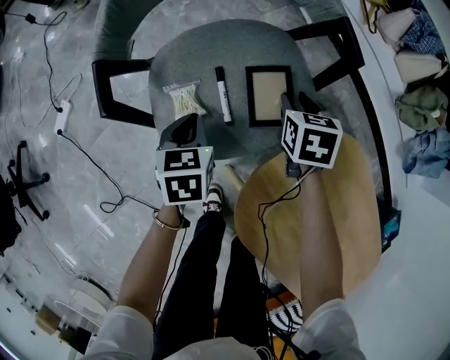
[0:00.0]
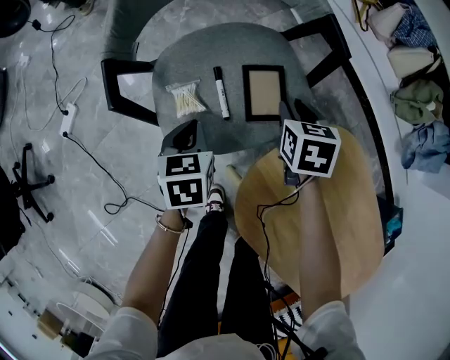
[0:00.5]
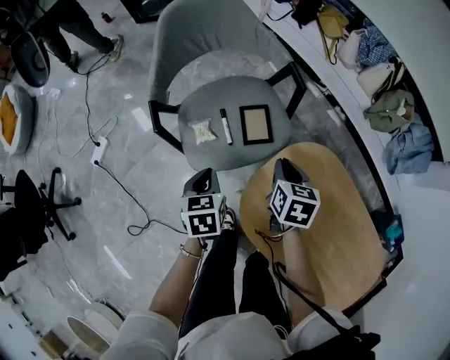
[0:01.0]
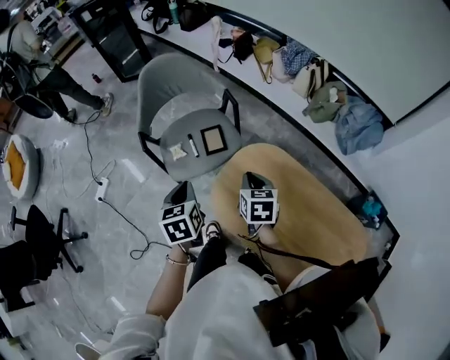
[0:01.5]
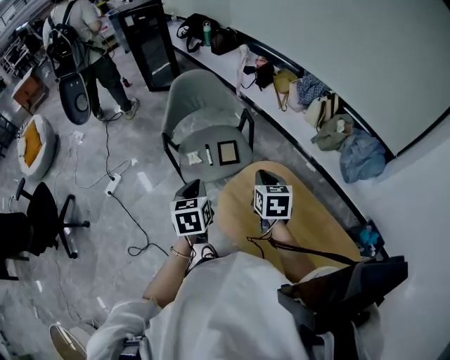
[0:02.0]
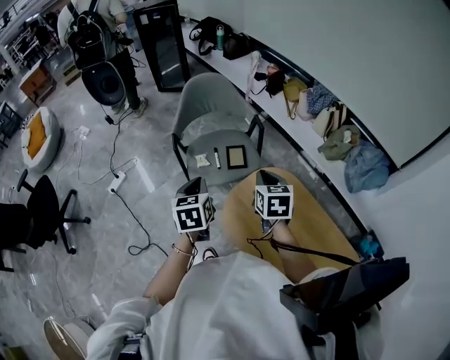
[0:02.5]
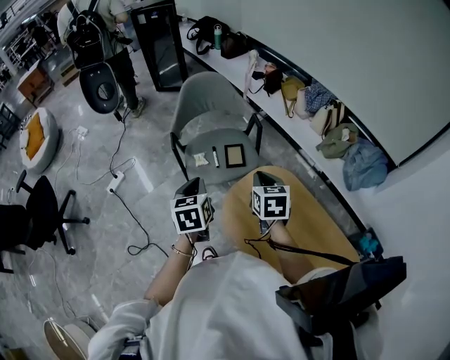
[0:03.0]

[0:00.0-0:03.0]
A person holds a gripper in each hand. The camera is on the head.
0.0 to 1.5 s: Both grippers move upward and backward, about 40 cm. The right gripper closes.
1.5 to 3.0 s: The right gripper shifts some 10 cm upward, while the left gripper heads upward, covering about 5 cm.

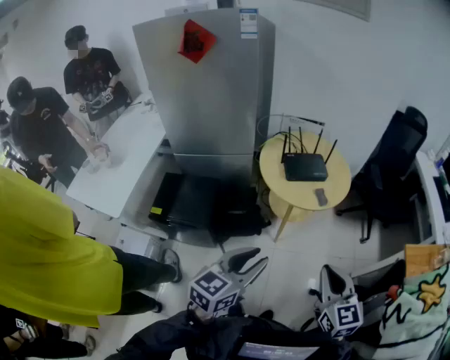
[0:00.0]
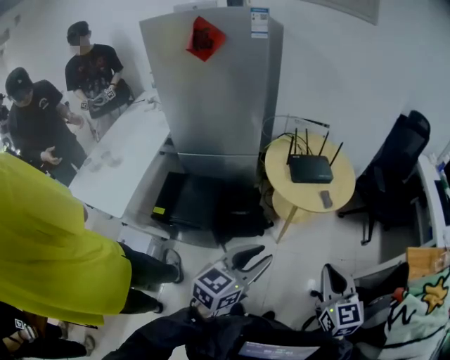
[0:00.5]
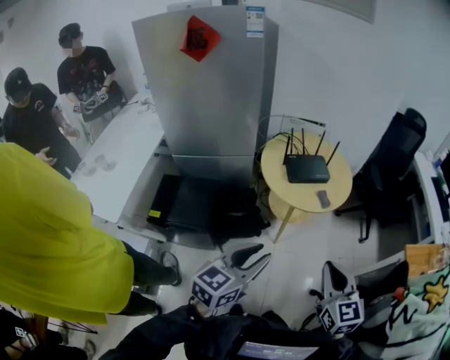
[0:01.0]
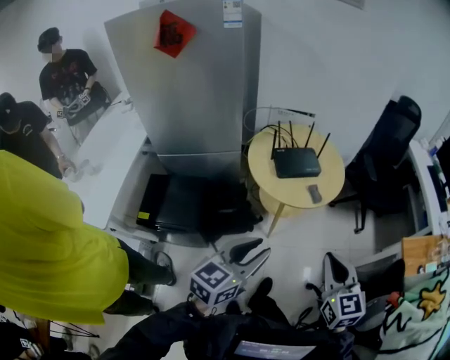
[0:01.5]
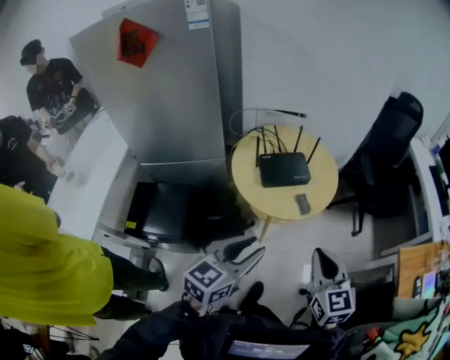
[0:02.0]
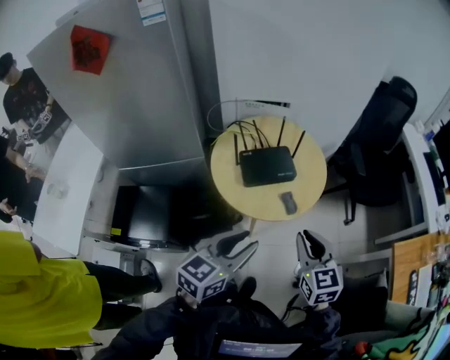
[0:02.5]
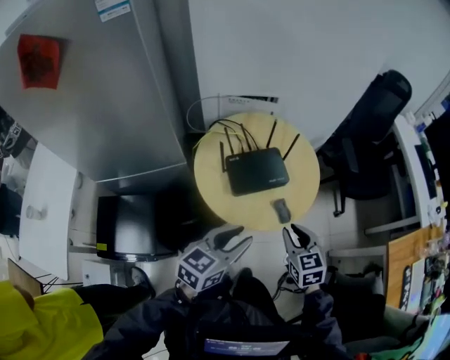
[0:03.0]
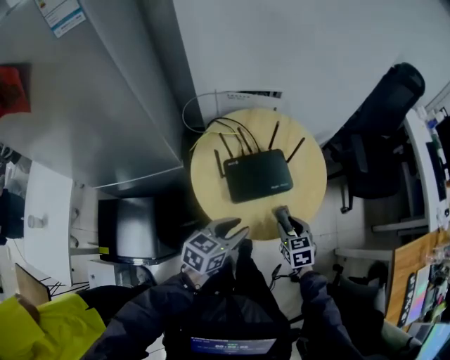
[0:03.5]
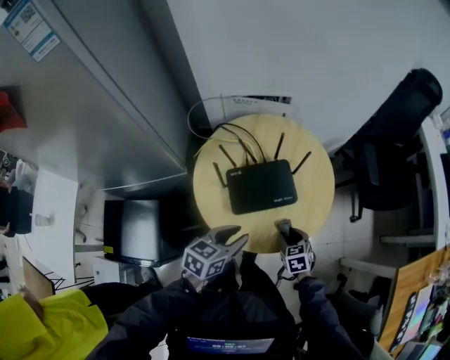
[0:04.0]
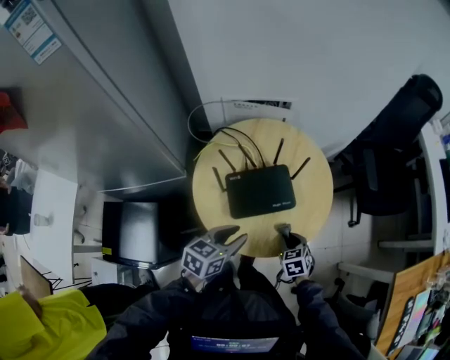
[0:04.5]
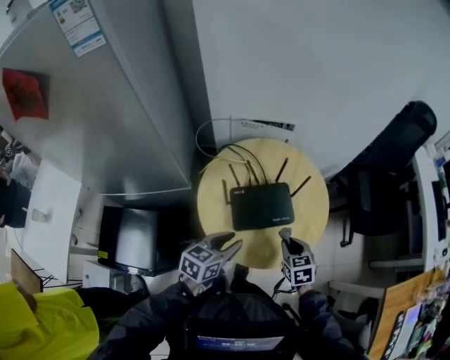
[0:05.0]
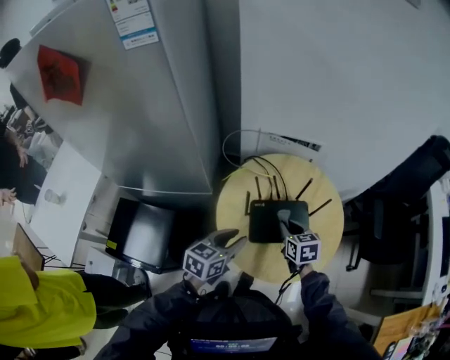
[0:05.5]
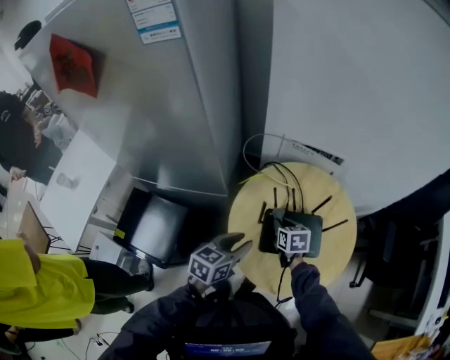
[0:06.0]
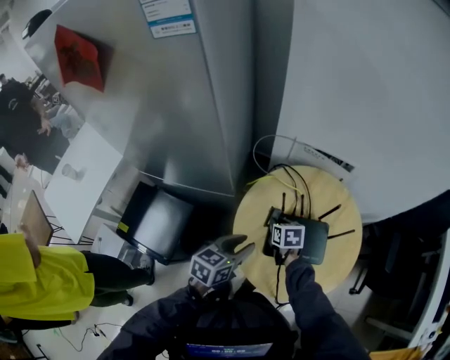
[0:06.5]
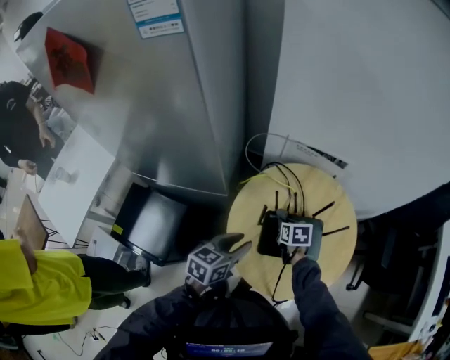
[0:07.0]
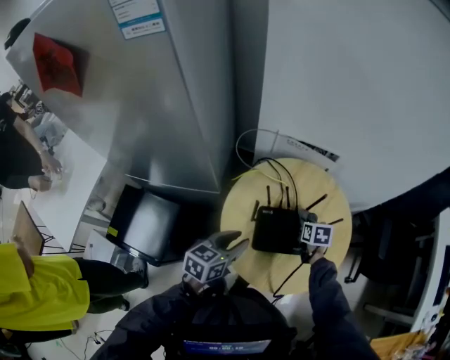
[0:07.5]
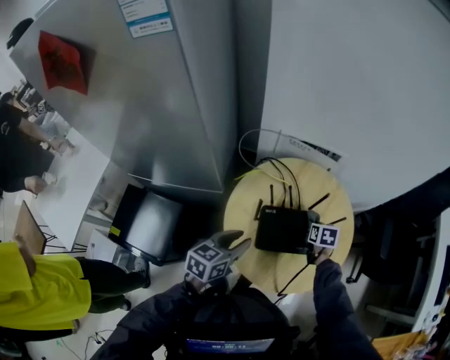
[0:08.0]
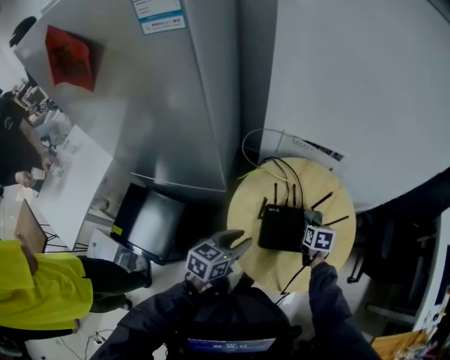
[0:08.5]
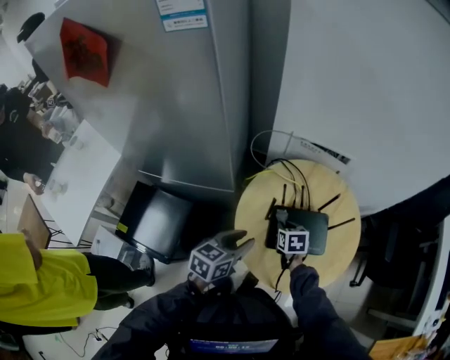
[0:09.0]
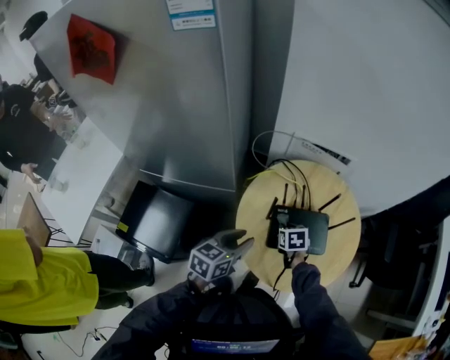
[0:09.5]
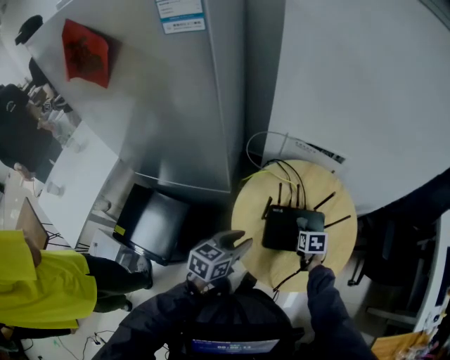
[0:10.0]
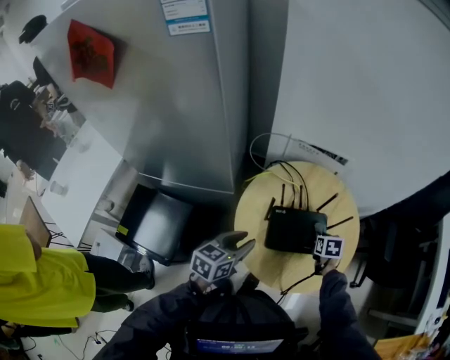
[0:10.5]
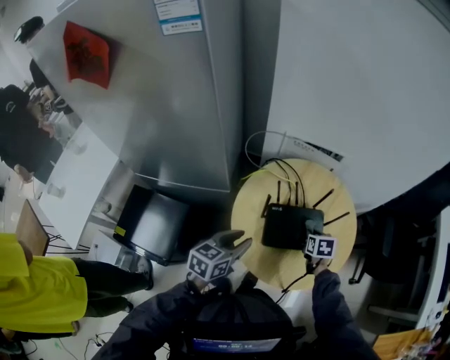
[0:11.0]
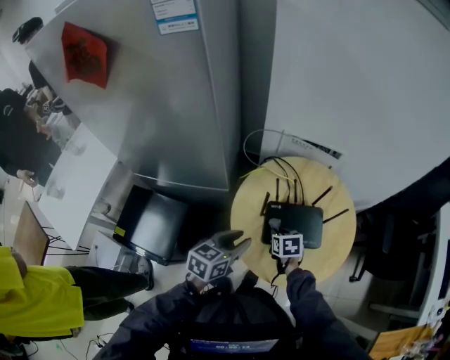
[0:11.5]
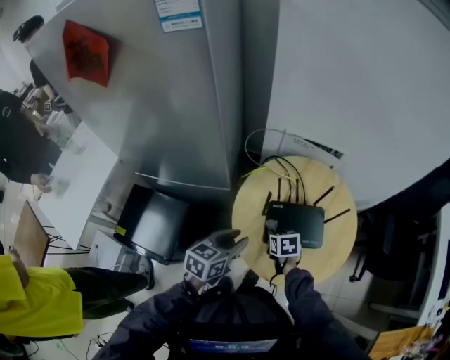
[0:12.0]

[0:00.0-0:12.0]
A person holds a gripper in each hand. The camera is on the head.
0.0 to 2.0 s: Both grippers travel together forward, some 15 cm.
2.0 to 4.0 s: The right gripper moves downward and forward, some 50 cm, tips its fingers downward by approximately 40 degrees, and opens up. The left gripper heads forward and downward, covering approximately 35 cm, and swivels approximately 20 degrees.
4.0 to 6.0 s: The right gripper changes place by approximately 30 cm, and closes its fingers; the left gripper shifts by about 15 cm, and rotates roughly 20 degrees.
6.0 to 8.0 s: The right gripper heads to the right, covering about 15 cm.
8.0 to 10.0 s: The right gripper is displaced backward by roughly 5 cm, and goes to the left and returns, some 15 cm each way.
10.0 to 12.0 s: The right gripper travels to the left and backward by approximately 15 cm.

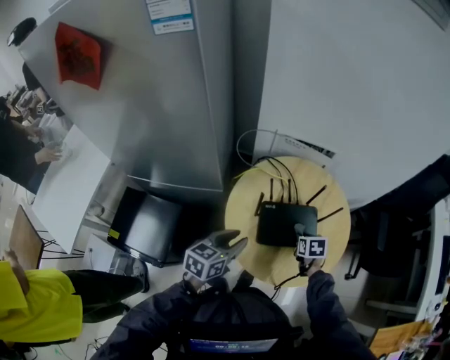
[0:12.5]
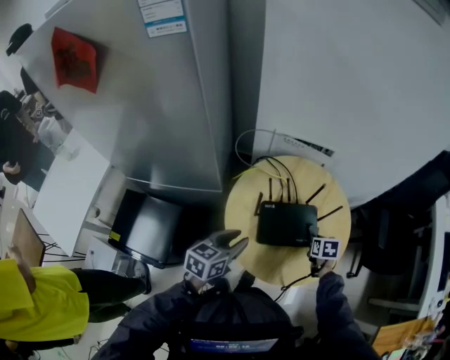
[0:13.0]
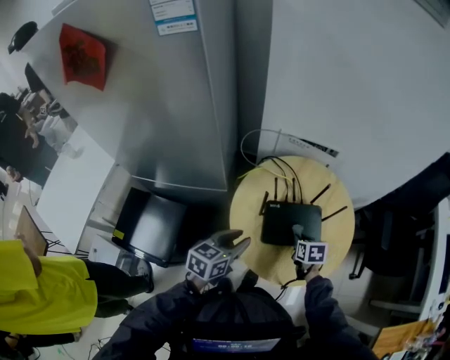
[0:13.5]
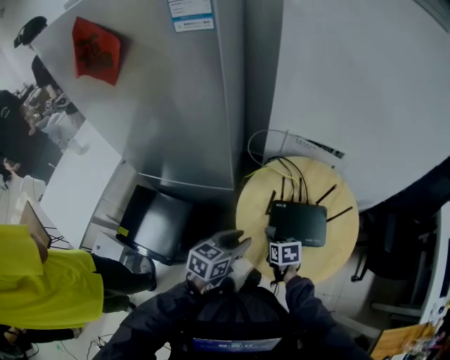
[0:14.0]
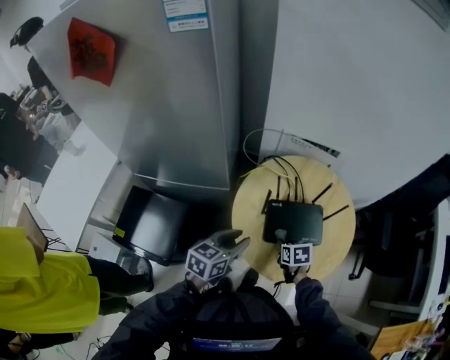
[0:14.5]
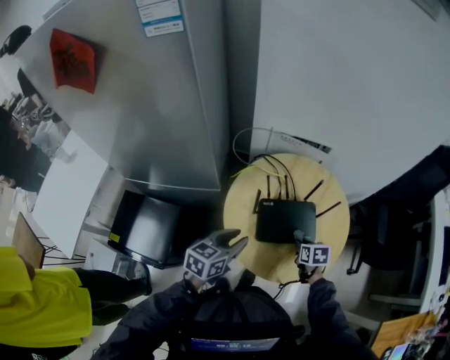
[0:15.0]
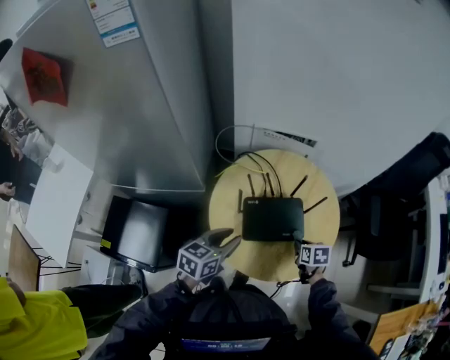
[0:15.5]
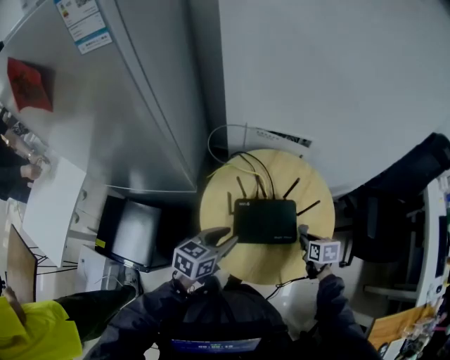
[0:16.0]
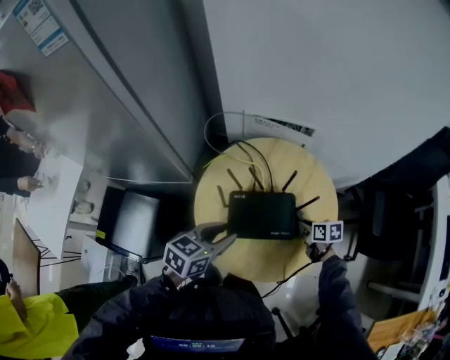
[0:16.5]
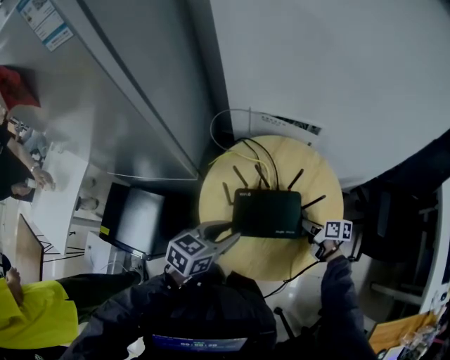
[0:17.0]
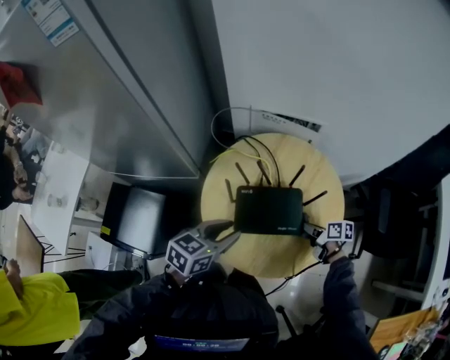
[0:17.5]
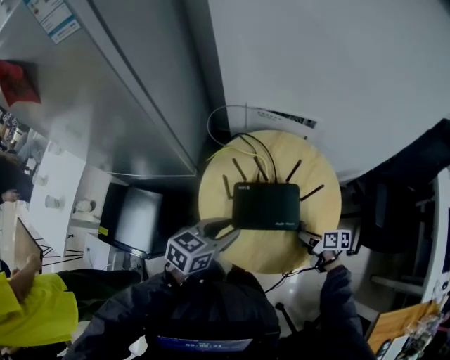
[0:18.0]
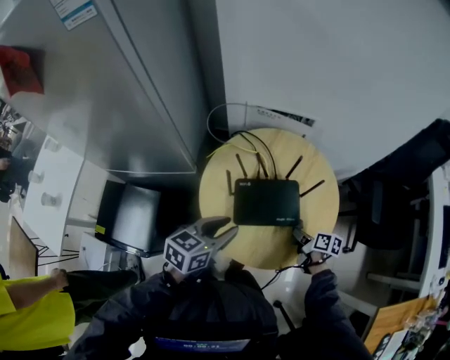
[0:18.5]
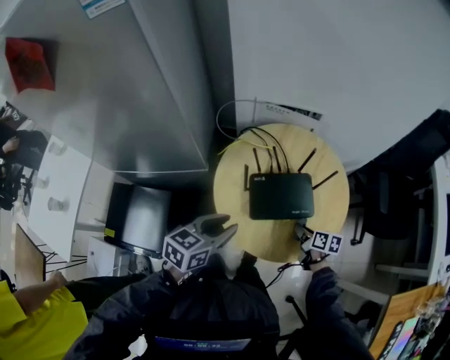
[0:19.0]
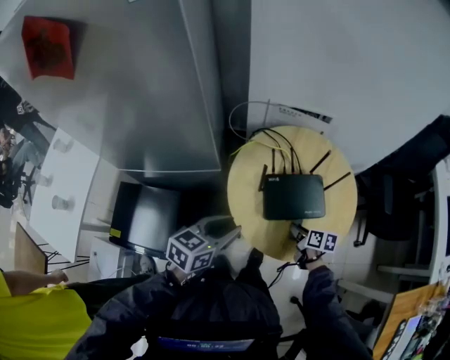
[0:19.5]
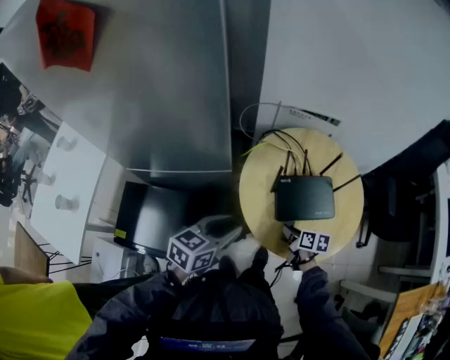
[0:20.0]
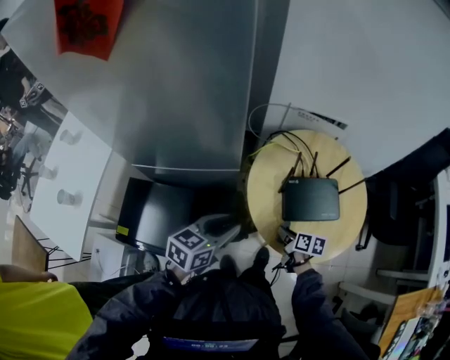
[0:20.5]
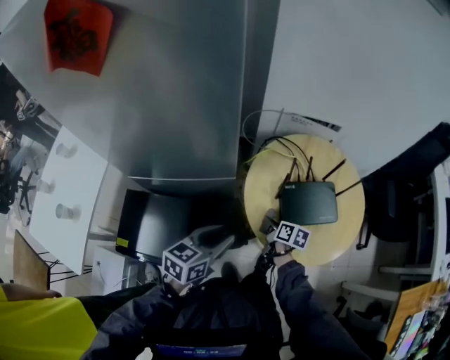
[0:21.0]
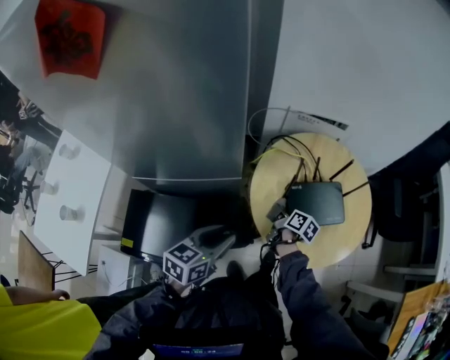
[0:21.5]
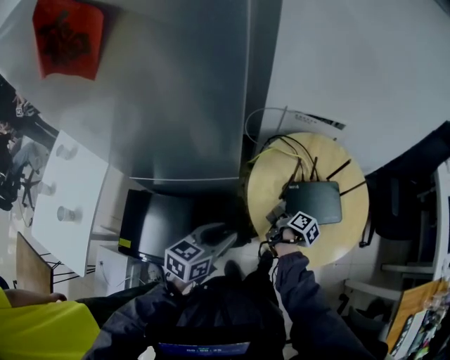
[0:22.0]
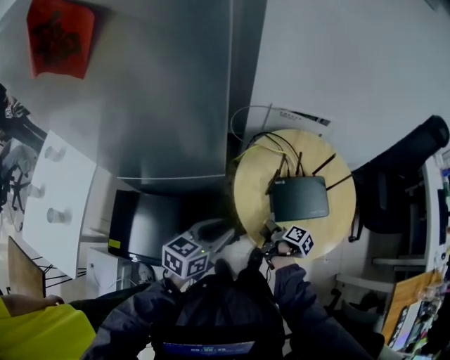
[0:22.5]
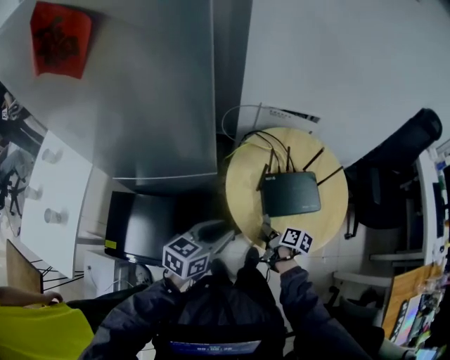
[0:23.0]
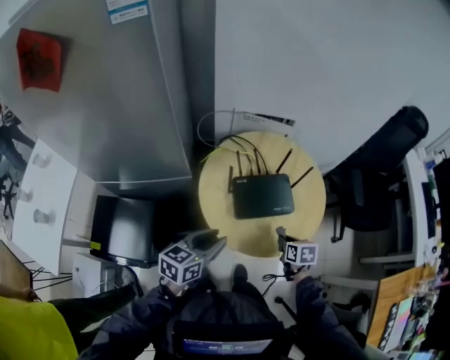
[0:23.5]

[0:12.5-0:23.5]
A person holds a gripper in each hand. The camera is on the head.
12.5 to 14.5 s: The right gripper goes left and right, some 20 cm each way, reversing 2 times.
14.5 to 16.0 s: The right gripper is displaced to the right by about 20 cm, while the left gripper travels to the right by roughly 5 cm.
16.0 to 18.0 s: The right gripper heads downward, covering approximately 5 cm, and changes its angle by about 30 degrees.
18.0 to 20.0 s: The grippers both shift to the left by approximately 20 cm.
20.0 to 21.5 s: The left gripper is displaced to the left by roughly 5 cm; the right gripper goes roughly 15 cm to the left and forward, and changes its angle by roughly 30 degrees.
21.5 to 23.5 s: The right gripper is displaced to the right and backward by roughly 25 cm, and turns by approximately 40 degrees; the left gripper is displaced to the right by some 15 cm.

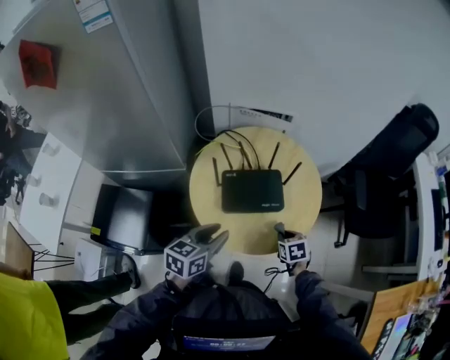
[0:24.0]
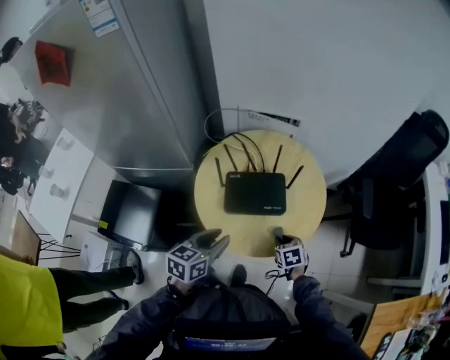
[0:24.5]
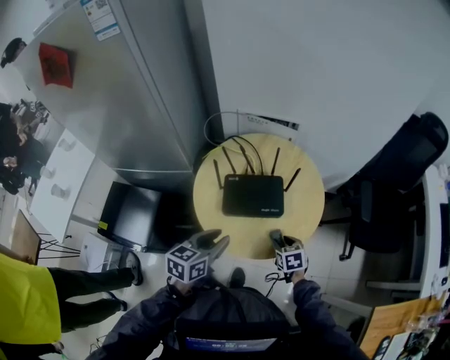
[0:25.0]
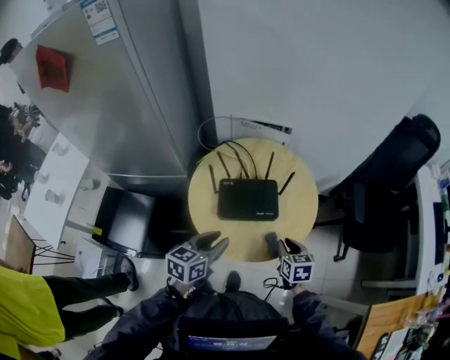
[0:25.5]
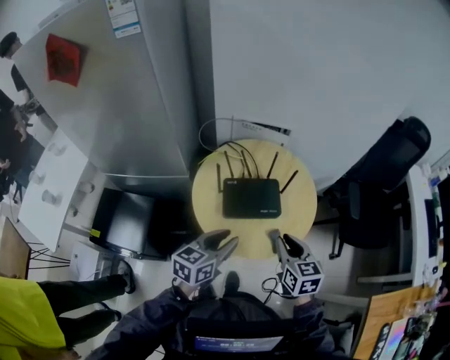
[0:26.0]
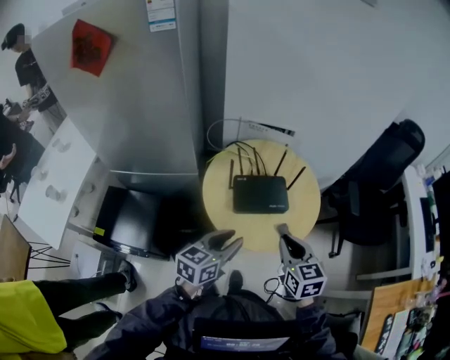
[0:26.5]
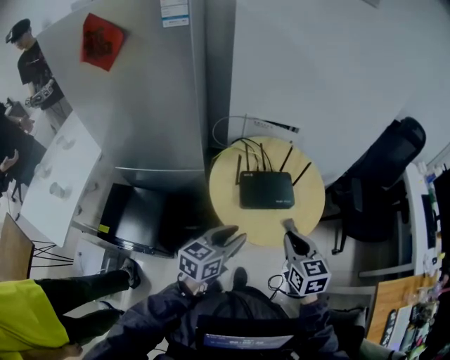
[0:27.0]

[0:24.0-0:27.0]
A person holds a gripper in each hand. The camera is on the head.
24.0 to 25.5 s: The right gripper is displaced upward by some 10 cm.
25.5 to 27.0 s: The right gripper heads upward, to the left and backward, covering some 25 cm. The left gripper moves backward and upward, some 10 cm.
